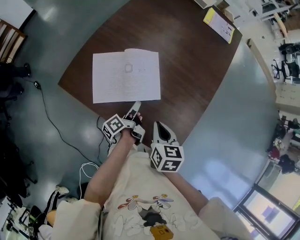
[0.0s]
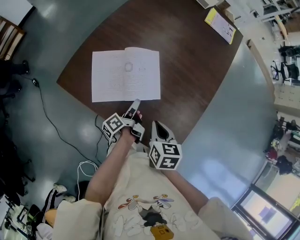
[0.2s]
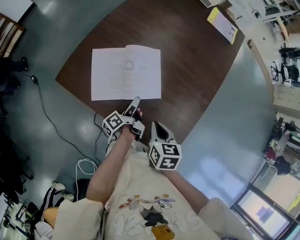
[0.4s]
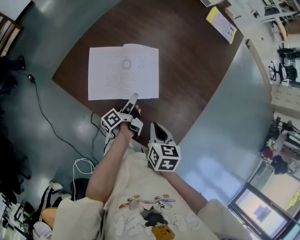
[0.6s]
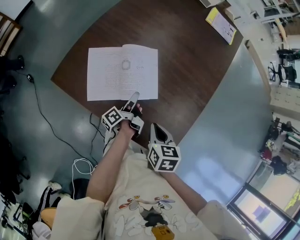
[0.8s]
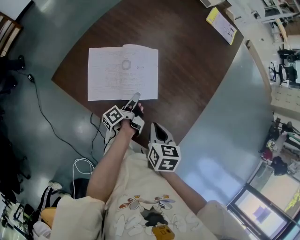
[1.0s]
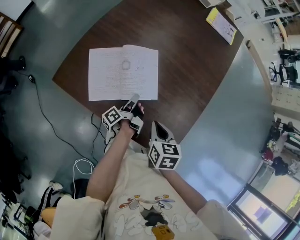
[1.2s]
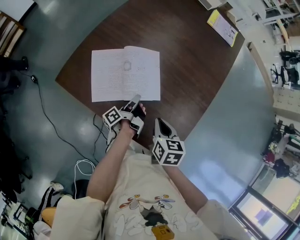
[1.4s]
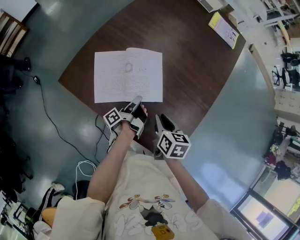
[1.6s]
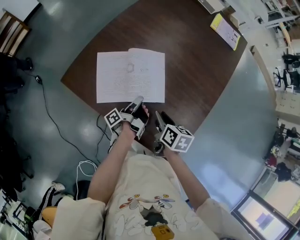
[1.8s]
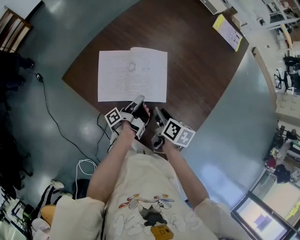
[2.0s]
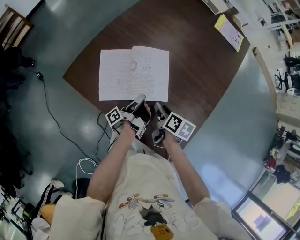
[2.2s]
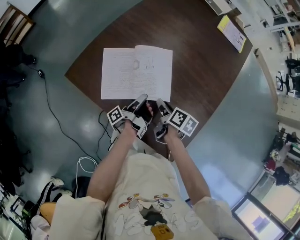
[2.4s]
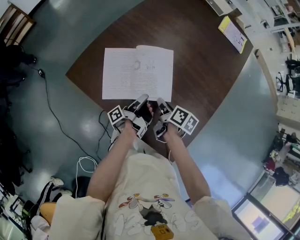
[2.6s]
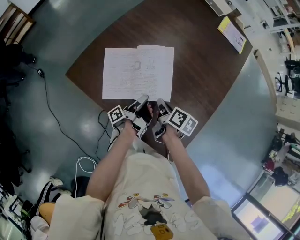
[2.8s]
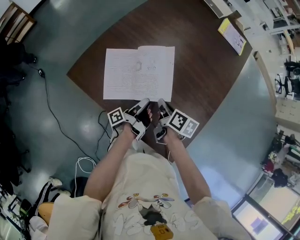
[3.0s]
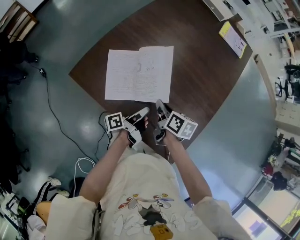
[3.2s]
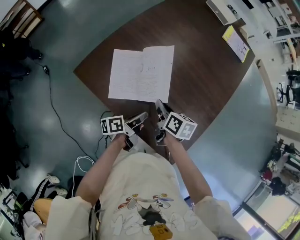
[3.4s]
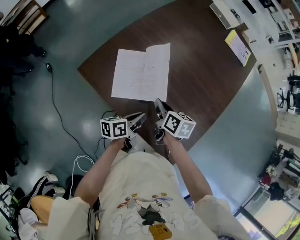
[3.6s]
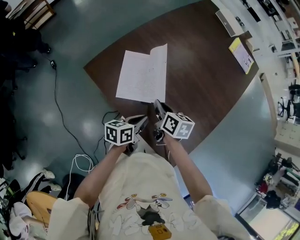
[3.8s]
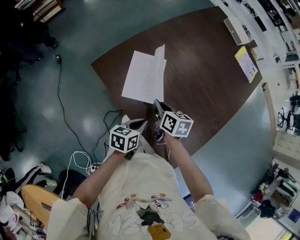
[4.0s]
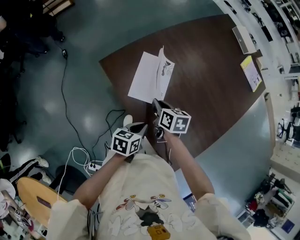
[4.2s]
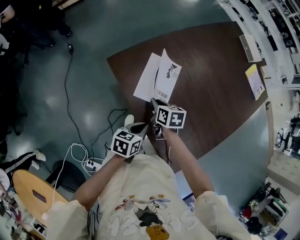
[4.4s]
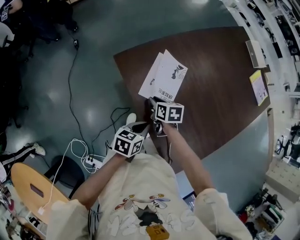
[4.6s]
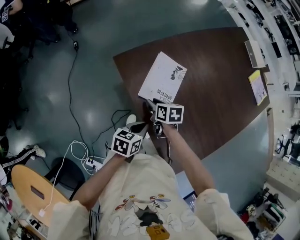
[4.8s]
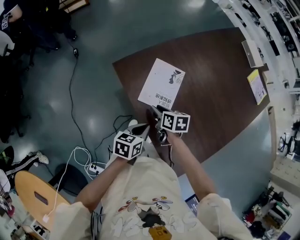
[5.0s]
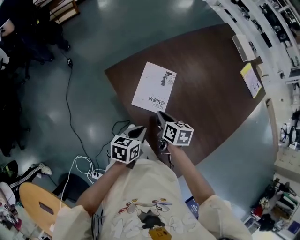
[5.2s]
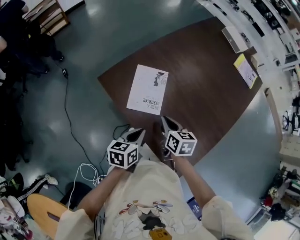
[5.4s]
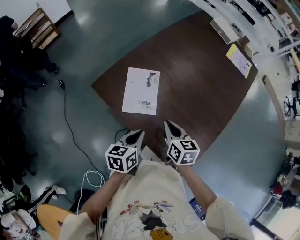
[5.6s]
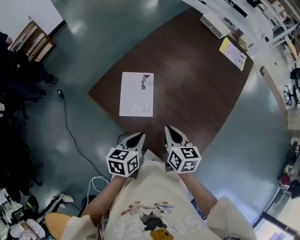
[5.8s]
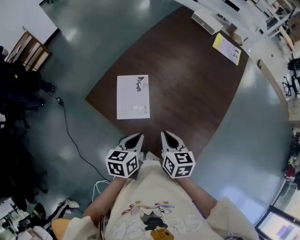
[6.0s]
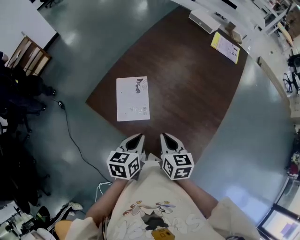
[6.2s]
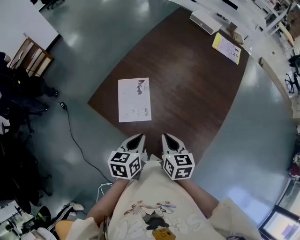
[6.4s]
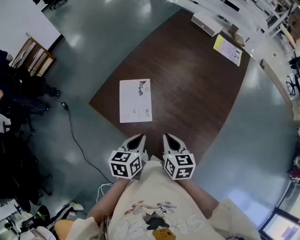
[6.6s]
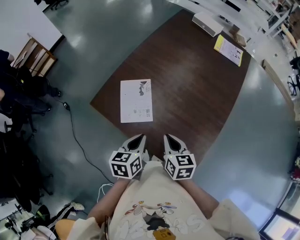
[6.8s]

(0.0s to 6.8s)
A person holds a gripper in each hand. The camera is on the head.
1.4s - 2.8s: The right gripper changes place by about 10 cm, swivels about 30 degrees, and opens, then closes once more.
2.8s - 4.0s: The right gripper shifts by some 10 cm, and rotates approximately 30 degrees.
4.0s - 5.4s: The right gripper reaches about 5 cm downward, then returns, and opens, then closes again.
5.4s - 6.8s: The right gripper ends up approximately 10 cm from where it was.

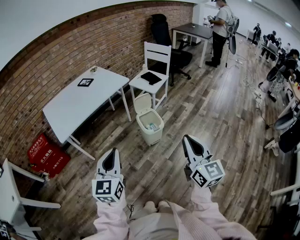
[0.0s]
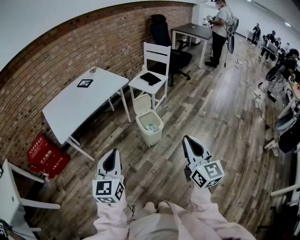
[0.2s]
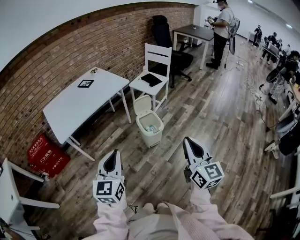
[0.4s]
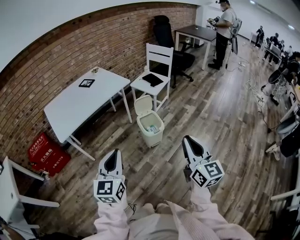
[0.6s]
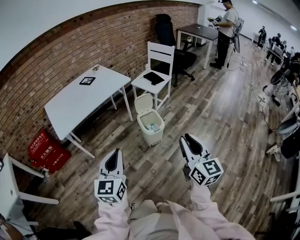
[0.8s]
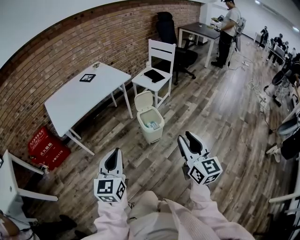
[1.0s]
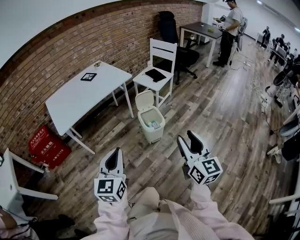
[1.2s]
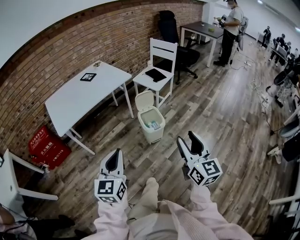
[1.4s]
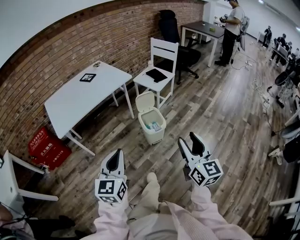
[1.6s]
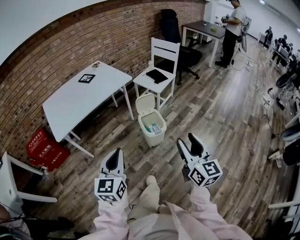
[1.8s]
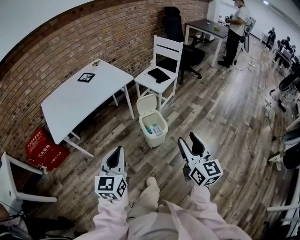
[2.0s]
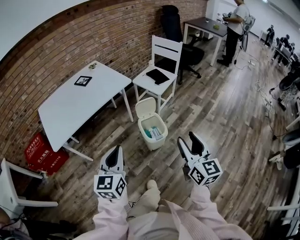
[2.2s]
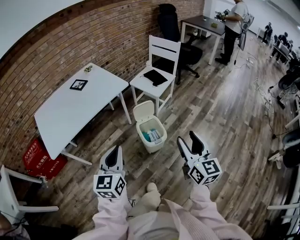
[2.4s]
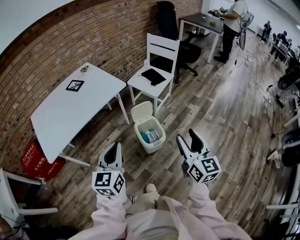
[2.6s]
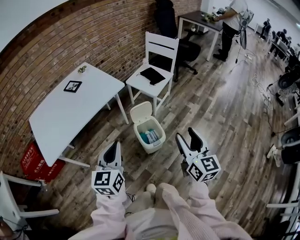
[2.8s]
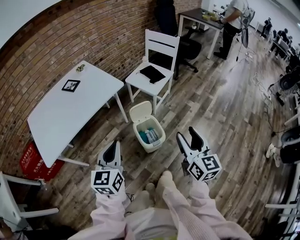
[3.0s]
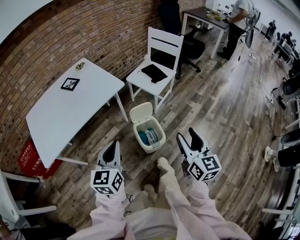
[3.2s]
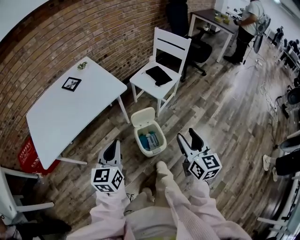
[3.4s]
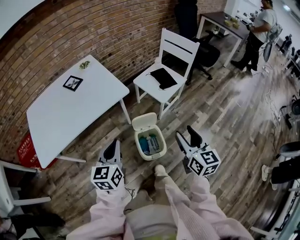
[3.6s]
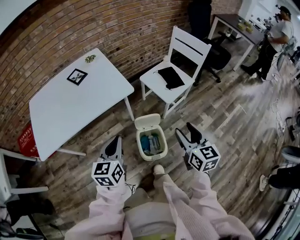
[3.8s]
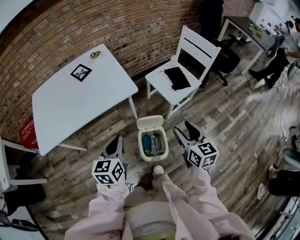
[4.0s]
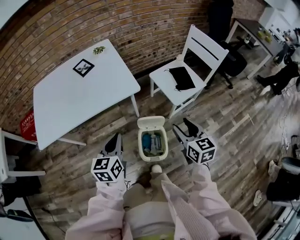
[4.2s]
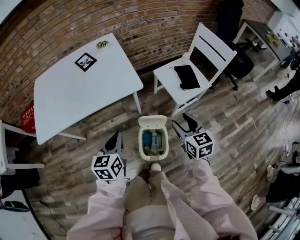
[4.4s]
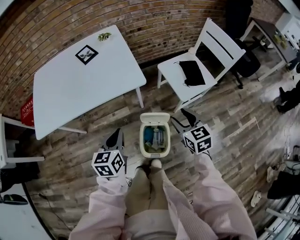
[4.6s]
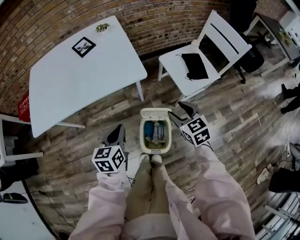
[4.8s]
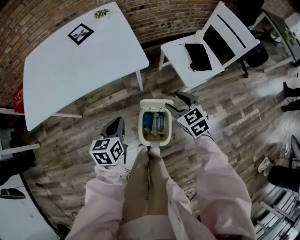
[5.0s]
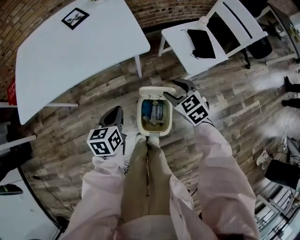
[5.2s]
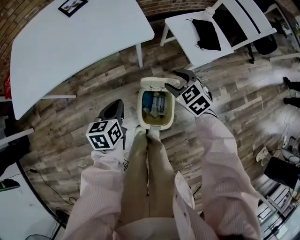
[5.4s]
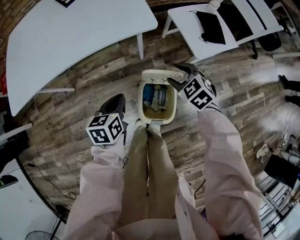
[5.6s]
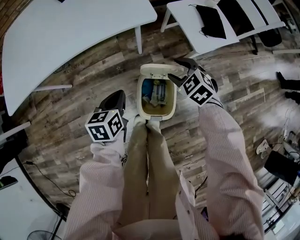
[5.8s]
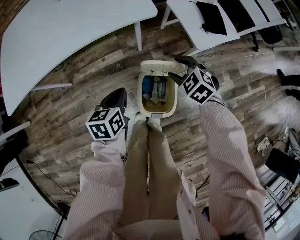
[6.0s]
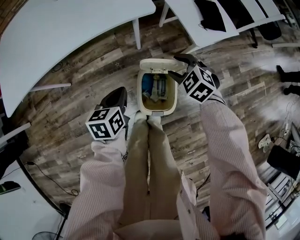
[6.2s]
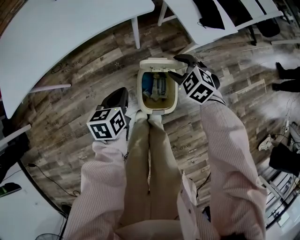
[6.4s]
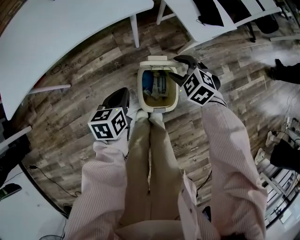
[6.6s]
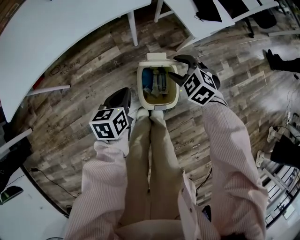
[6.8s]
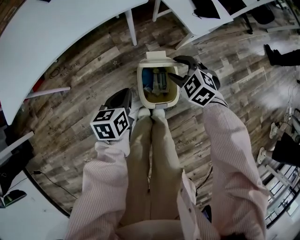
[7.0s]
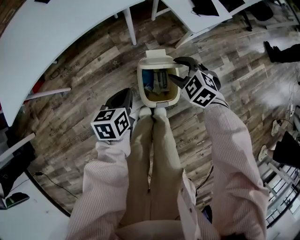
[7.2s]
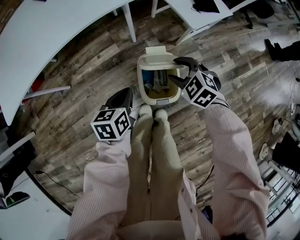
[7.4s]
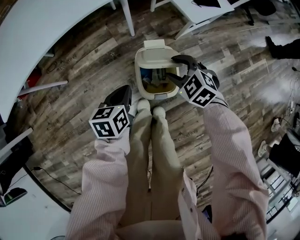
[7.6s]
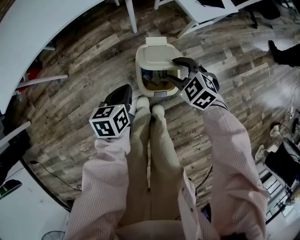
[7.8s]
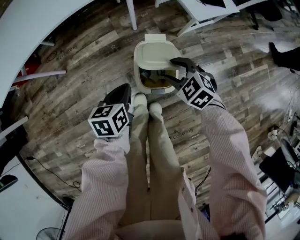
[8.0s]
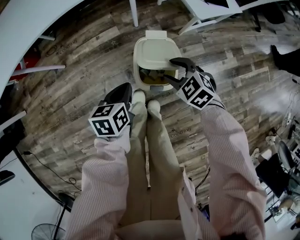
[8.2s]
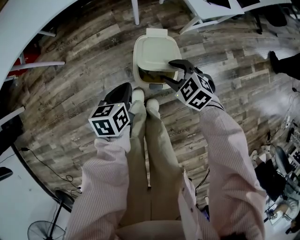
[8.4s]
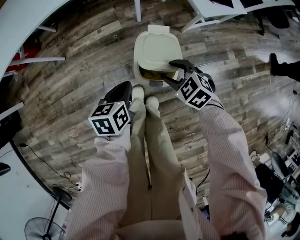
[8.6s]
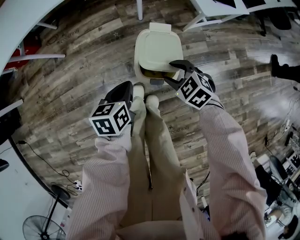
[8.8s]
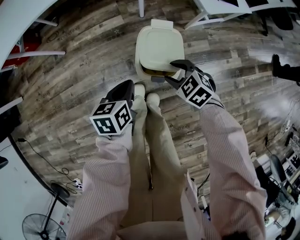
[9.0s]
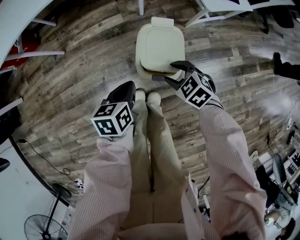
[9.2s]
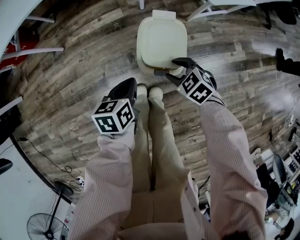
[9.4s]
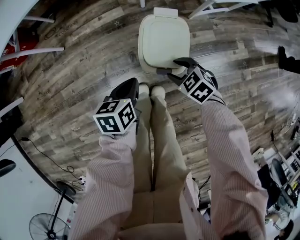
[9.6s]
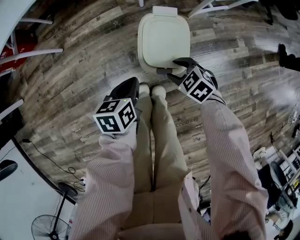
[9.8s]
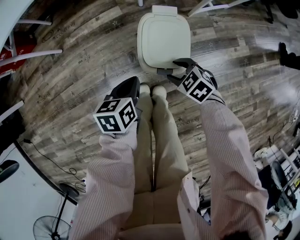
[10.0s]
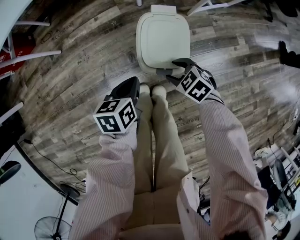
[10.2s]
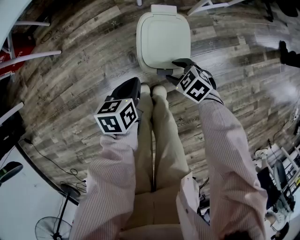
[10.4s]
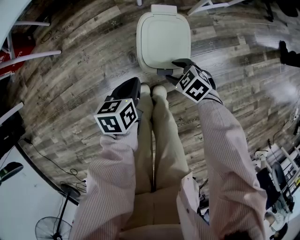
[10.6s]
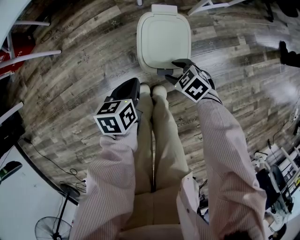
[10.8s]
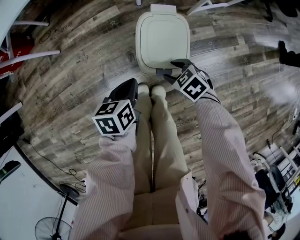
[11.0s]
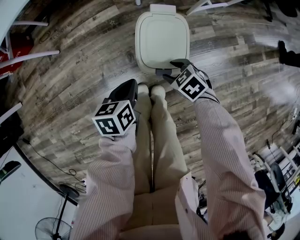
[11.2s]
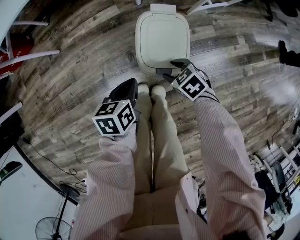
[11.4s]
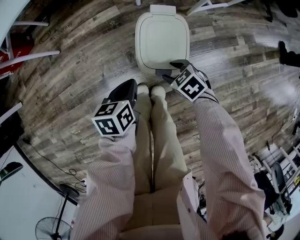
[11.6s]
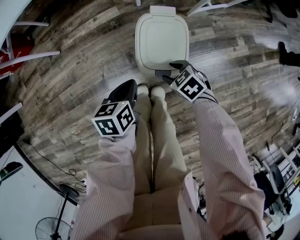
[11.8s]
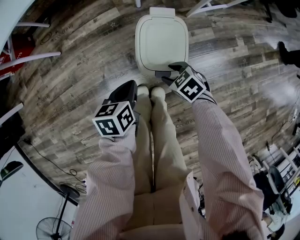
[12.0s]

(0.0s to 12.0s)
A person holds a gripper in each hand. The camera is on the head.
0.0s - 1.6s: The right gripper ends up about 10 cm from where it was, and opens its fingers. Meanwhile the left gripper is displaced to the right by some 5 cm.
1.6s - 3.0s: Both grippers move forward, roughly 25 cm.
3.0s - 4.4s: The left gripper ends up about 20 cm from where it was, and swivels approximately 30 degrees. The right gripper moves some 35 cm, and rotates some 40 degrees.
4.4s - 6.0s: The two grippers go approximately 20 cm downward. The left gripper turns by roughly 20 degrees. The right gripper tilts its fingers about 30 degrees downward.
6.0s - 7.6s: The two grippers go some 10 cm backward.
7.6s - 9.0s: The left gripper shifts approximately 10 cm backward, while the right gripper travels backward and downward by some 10 cm.
9.0s - 10.4s: The two grippers go roughly 10 cm downward.
10.4s - 12.0s: The grippers make only small movements.

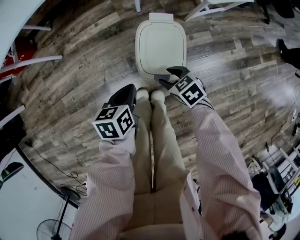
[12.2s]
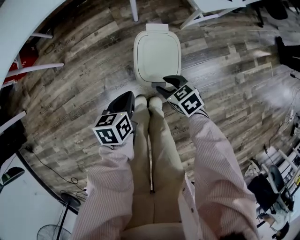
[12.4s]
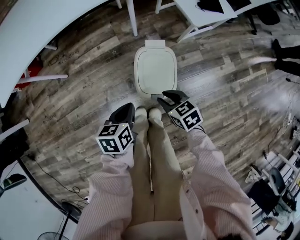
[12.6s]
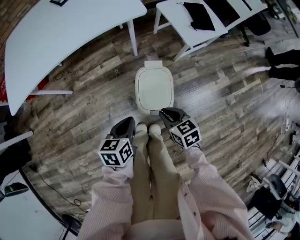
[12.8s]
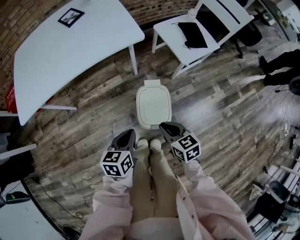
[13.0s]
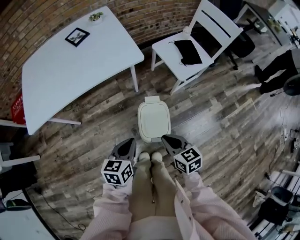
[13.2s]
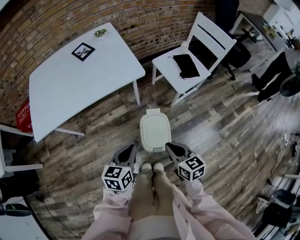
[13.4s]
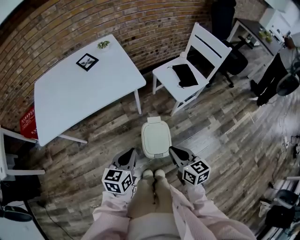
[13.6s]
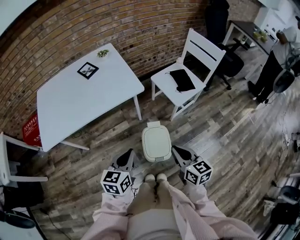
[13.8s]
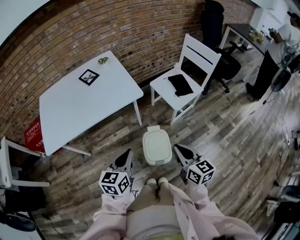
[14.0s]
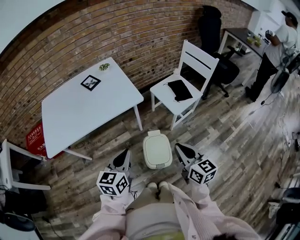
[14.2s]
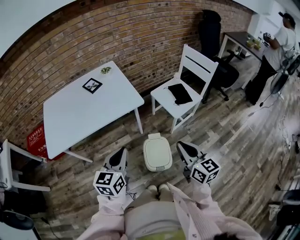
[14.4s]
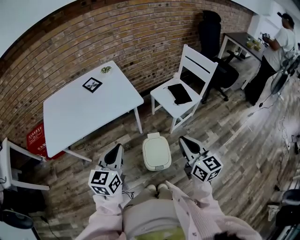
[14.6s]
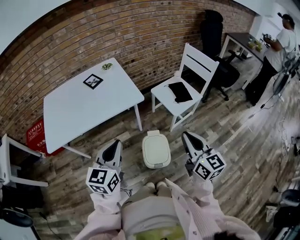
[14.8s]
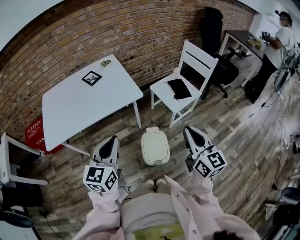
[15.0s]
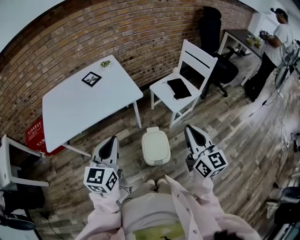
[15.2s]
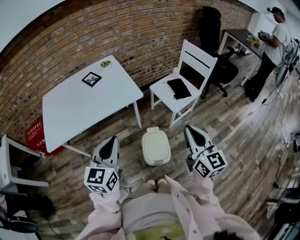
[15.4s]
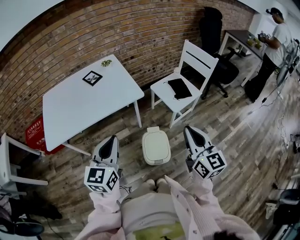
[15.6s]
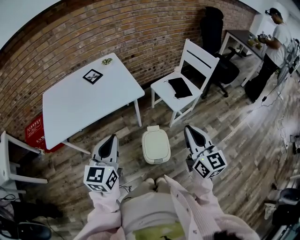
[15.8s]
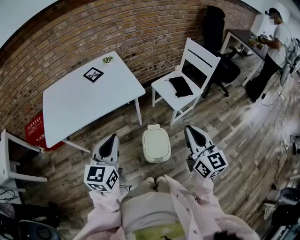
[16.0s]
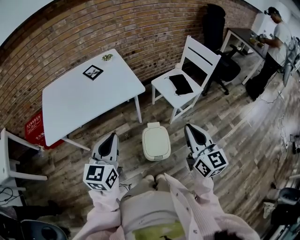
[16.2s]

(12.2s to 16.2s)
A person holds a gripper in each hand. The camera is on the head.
12.2s - 13.6s: The grippers both shift upward by about 35 cm. The right gripper points its fingers roughly 30 degrees further upward, and closes; the left gripper rotates roughly 30 degrees.
13.6s - 14.8s: Both grippers move upward, about 15 cm. The right gripper swivels about 30 degrees; the left gripper changes its angle by approximately 20 degrees.
14.8s - 16.2s: The grippers move only a little.

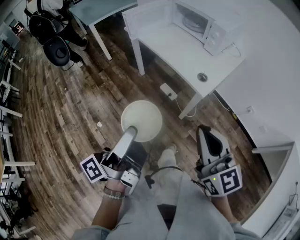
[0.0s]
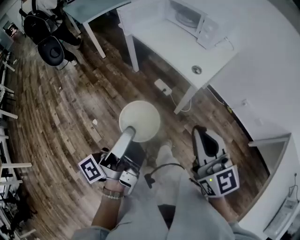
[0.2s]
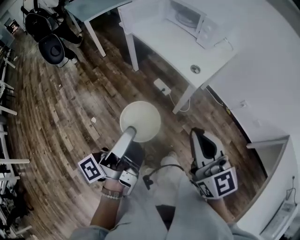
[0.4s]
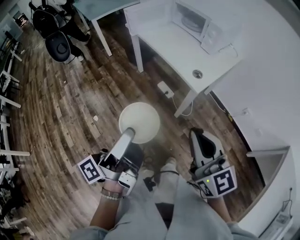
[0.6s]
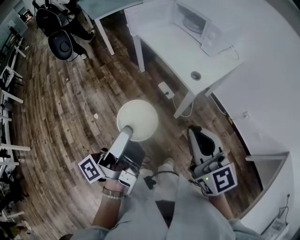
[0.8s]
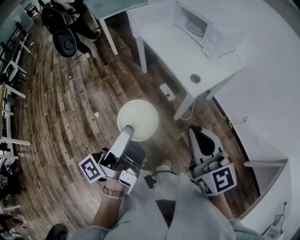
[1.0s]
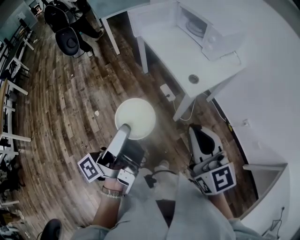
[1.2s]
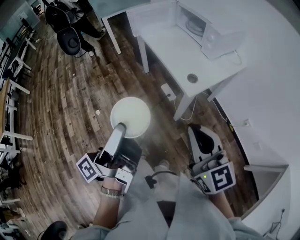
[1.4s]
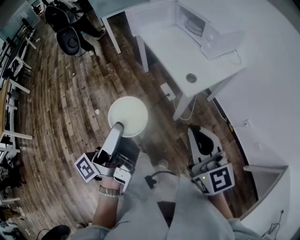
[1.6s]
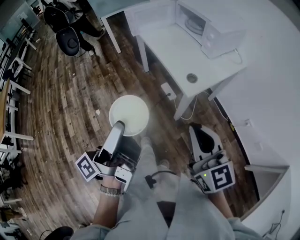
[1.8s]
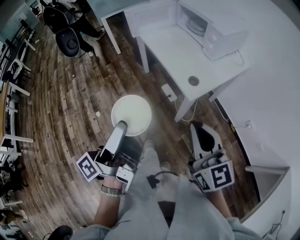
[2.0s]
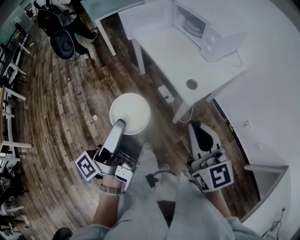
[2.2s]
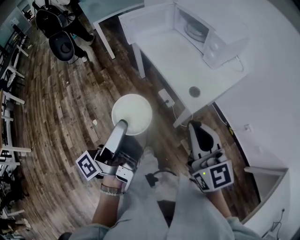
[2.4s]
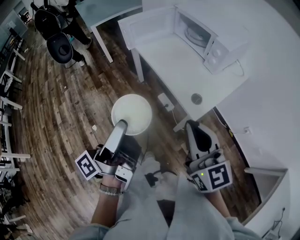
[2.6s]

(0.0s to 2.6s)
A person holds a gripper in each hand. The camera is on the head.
0.0s - 1.2s: The right gripper shifts by approximately 5 cm.
1.2s - 2.6s: The right gripper changes place by approximately 15 cm.
